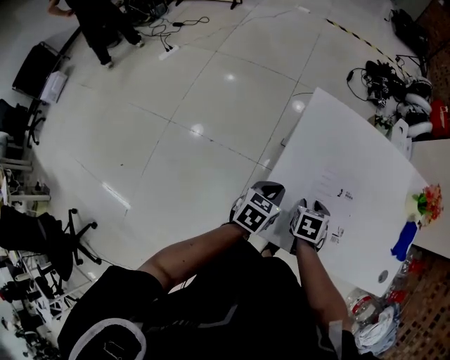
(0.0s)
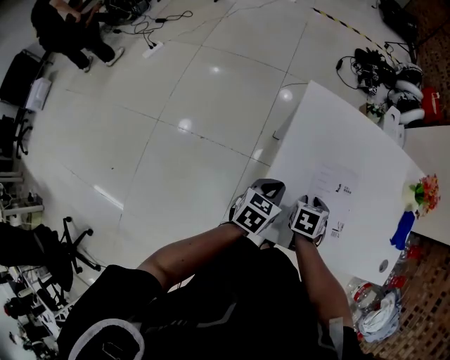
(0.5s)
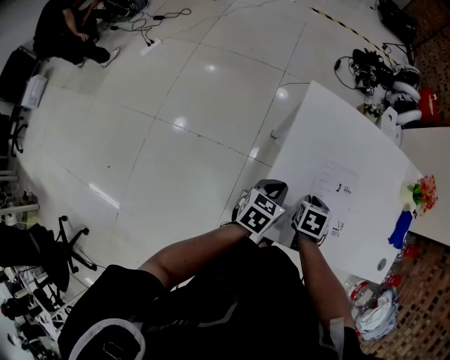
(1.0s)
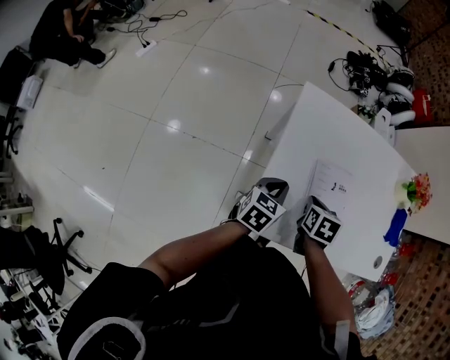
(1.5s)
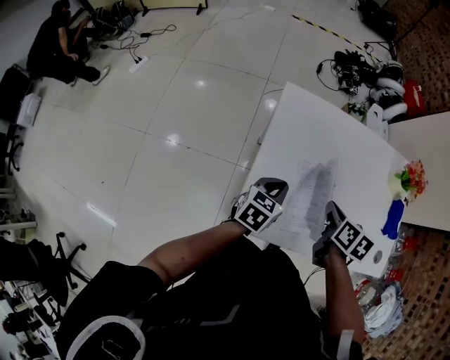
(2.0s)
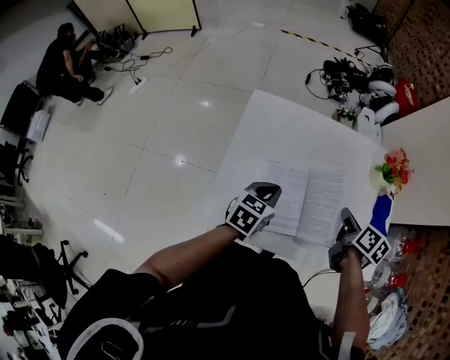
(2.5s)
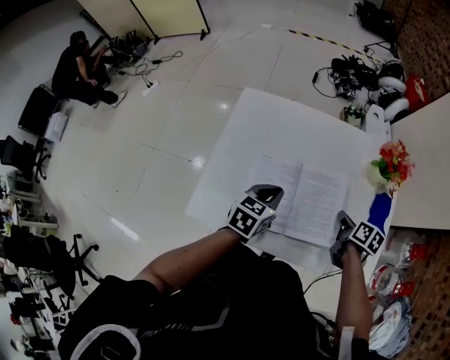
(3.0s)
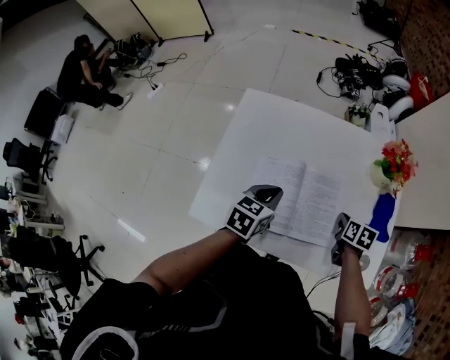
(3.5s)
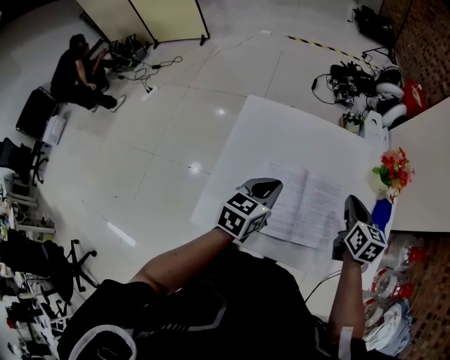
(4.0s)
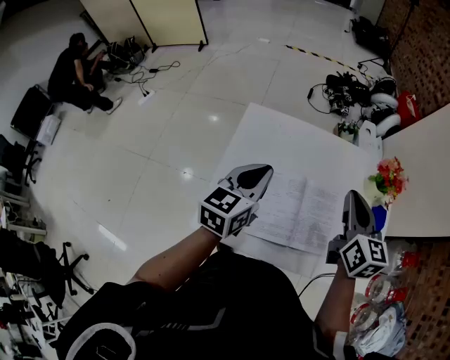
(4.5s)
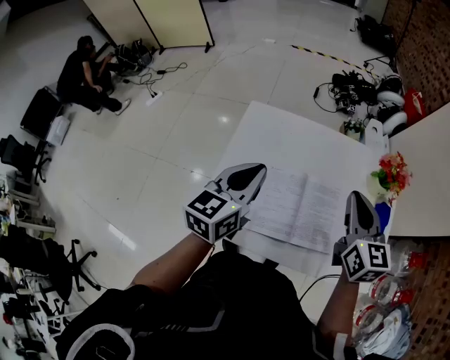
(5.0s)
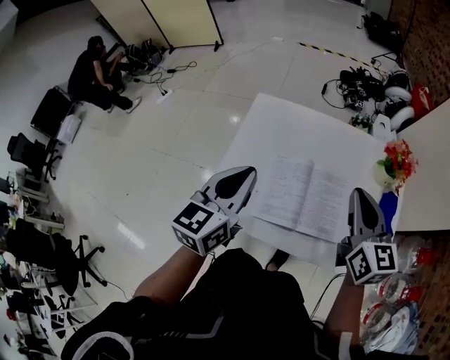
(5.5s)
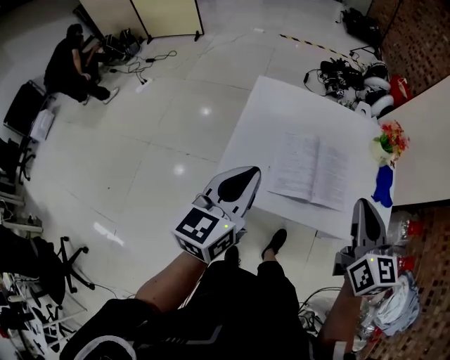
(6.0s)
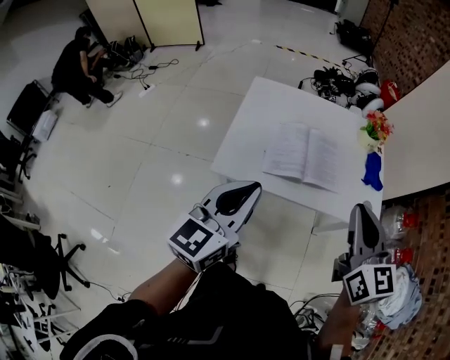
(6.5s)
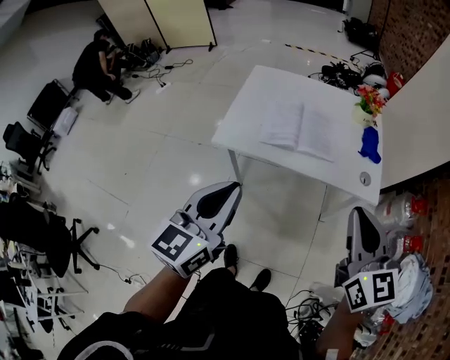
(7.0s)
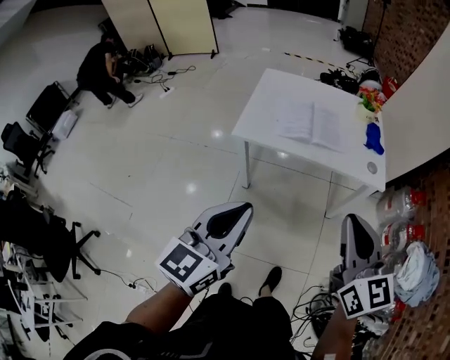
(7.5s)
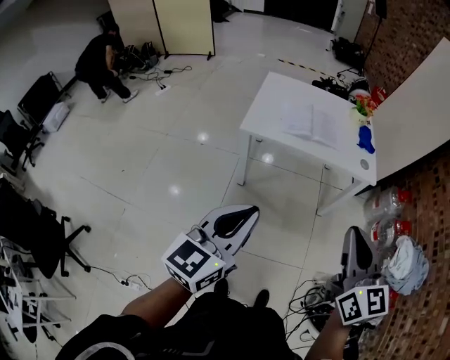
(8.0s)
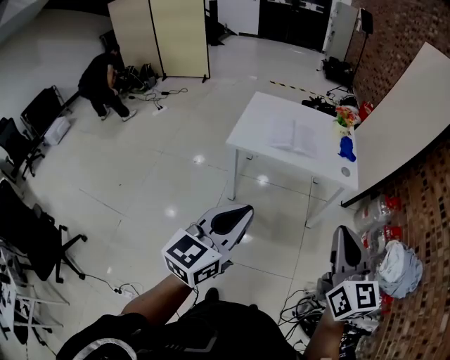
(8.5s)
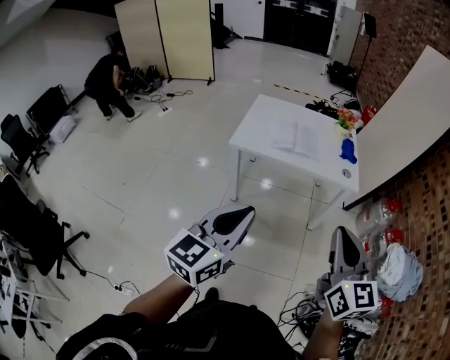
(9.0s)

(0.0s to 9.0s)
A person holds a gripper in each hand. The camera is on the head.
0.0s - 2.0s: The left gripper heads to the right, covering approximately 5 cm, while the right gripper is displaced upward and to the right by some 15 cm, swivels roughly 30 degrees, and closes.
2.0s - 4.5s: Both grippers travel together upward and to the right, approximately 20 cm. The right gripper points its fingers some 30 degrees further upward. Meanwhile the left gripper changes its angle by about 20 degrees.
4.5s - 7.0s: The pair of grippers is taken backward, roughly 50 cm.
7.0s - 9.0s: Both grippers travel together backward, about 30 cm.

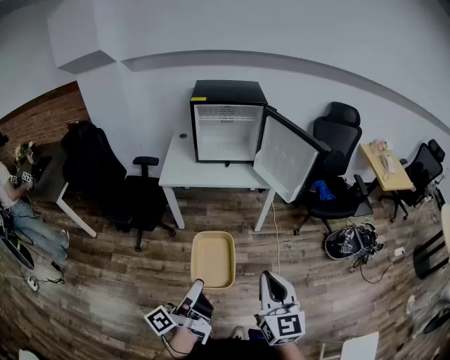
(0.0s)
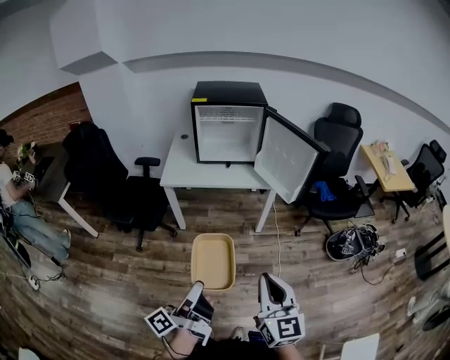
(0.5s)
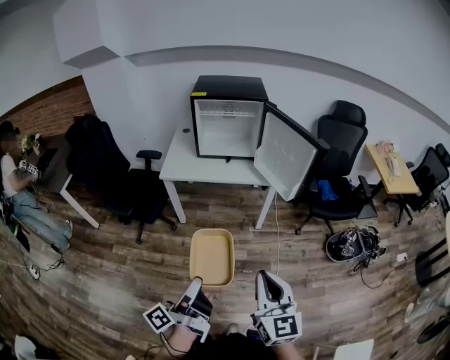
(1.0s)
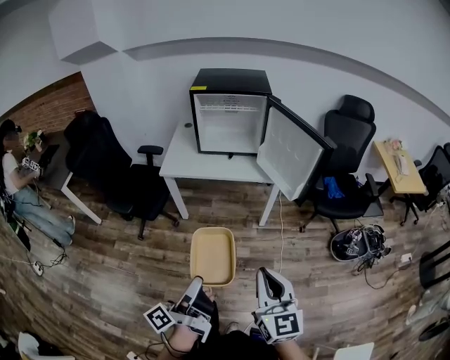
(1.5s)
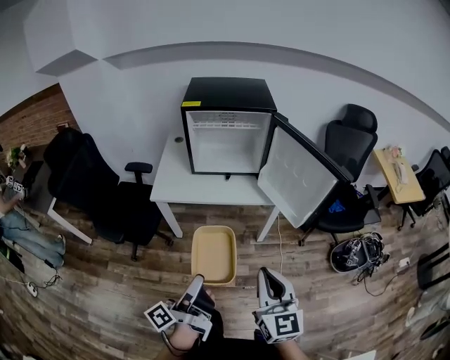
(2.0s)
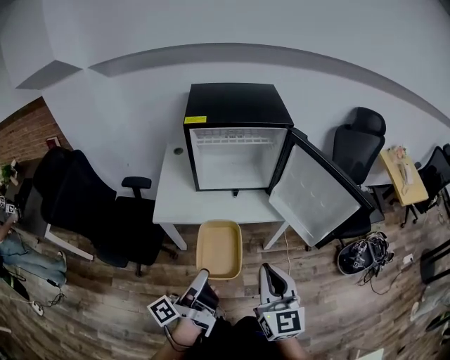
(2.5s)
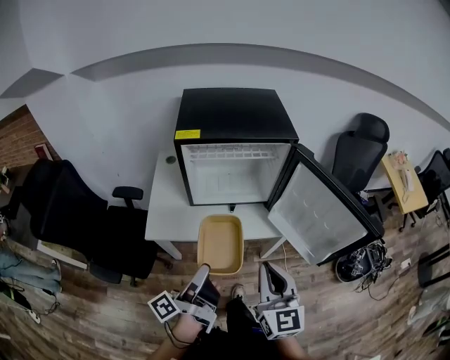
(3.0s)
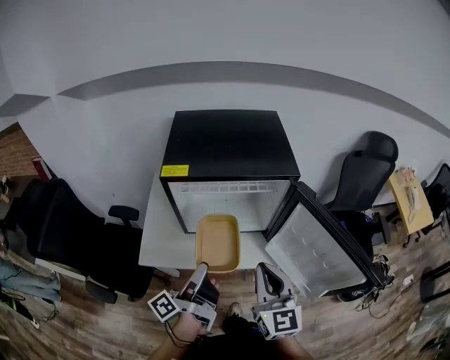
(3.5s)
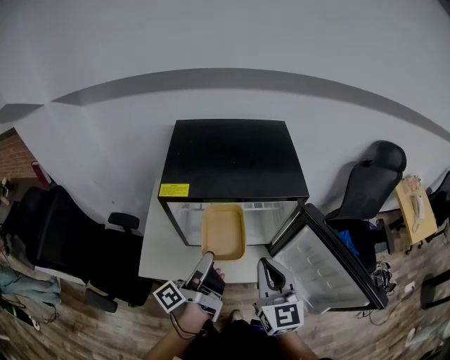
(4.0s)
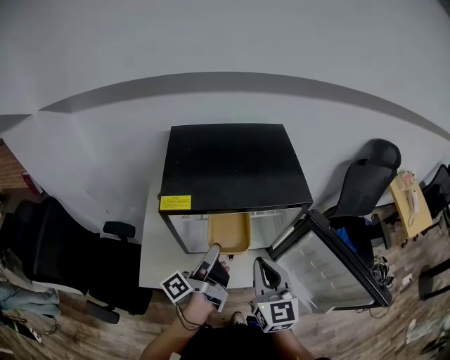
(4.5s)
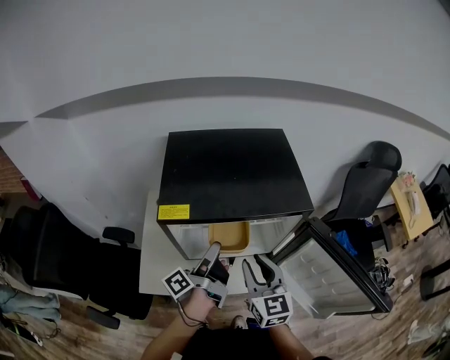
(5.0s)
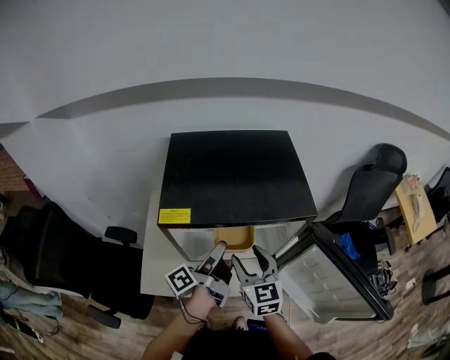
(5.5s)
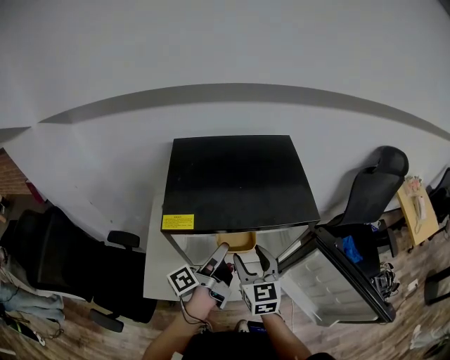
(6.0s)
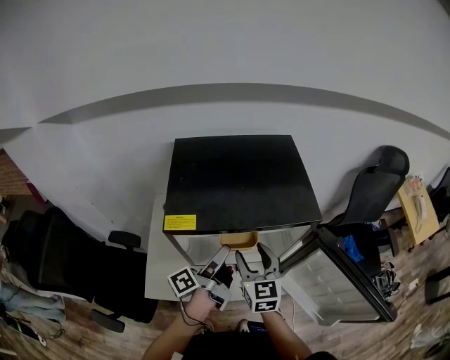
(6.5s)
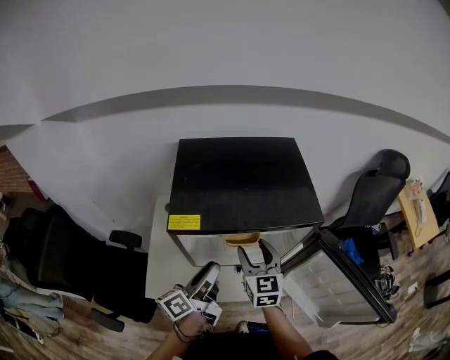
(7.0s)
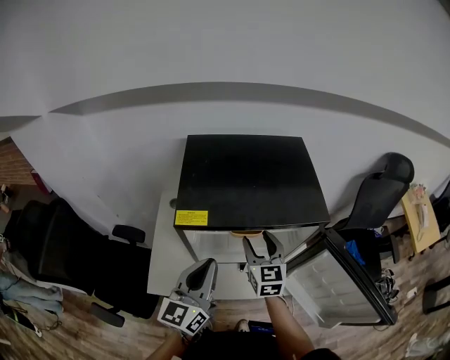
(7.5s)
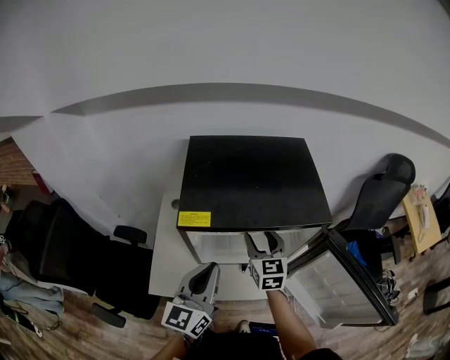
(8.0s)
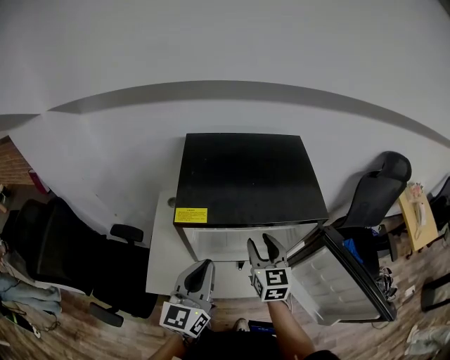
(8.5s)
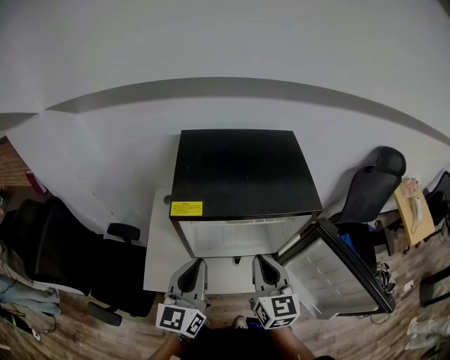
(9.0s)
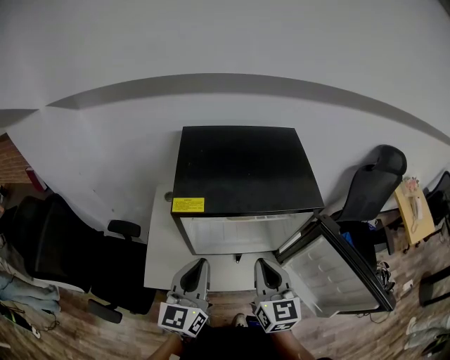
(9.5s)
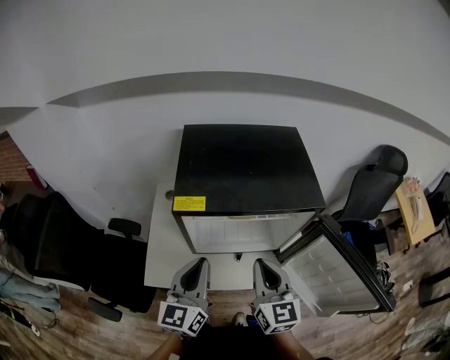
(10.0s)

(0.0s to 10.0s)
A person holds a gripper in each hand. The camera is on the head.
0.0s - 2.0s: Both grippers move forward, approximately 20 cm.
2.0s - 4.0s: The two grippers travel together, forward, some 50 cm.
4.0s - 6.0s: The right gripper goes roughly 15 cm forward, downward and to the left, and opens. The left gripper travels forward by some 10 cm.
6.0s - 8.0s: The left gripper is displaced backward and upward by some 10 cm, twists roughly 70 degrees clockwise, seen from behind, and closes, while the right gripper travels forward by approximately 5 cm.
8.0s - 10.0s: The right gripper heads backward, covering about 15 cm, and closes.

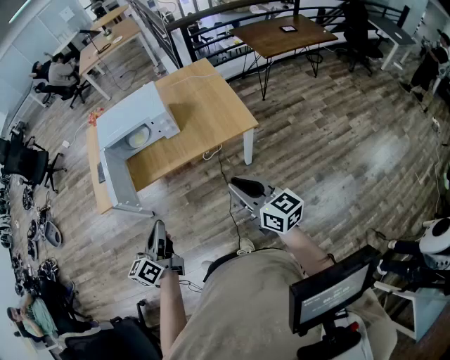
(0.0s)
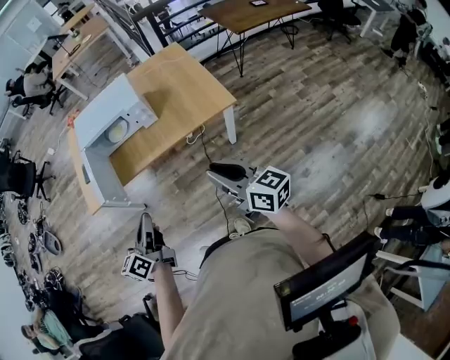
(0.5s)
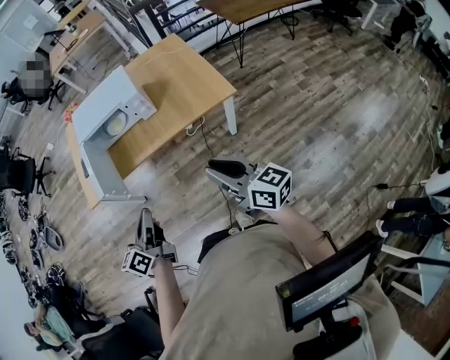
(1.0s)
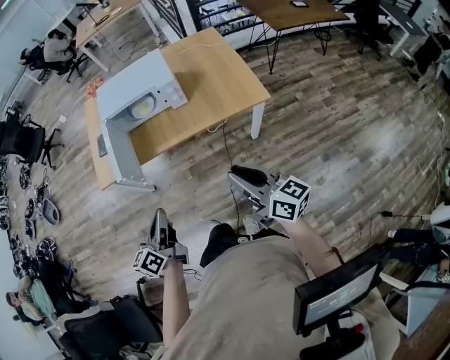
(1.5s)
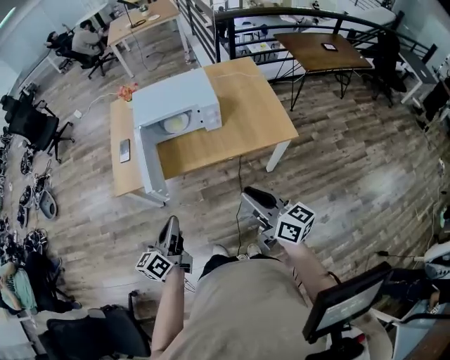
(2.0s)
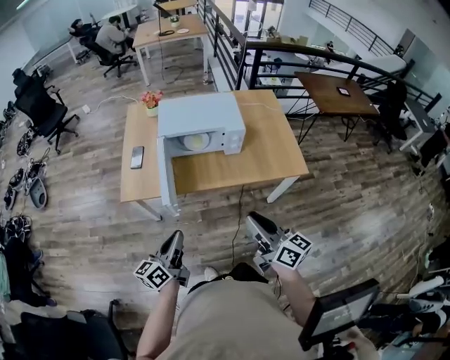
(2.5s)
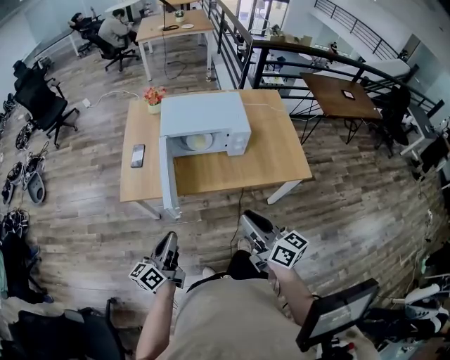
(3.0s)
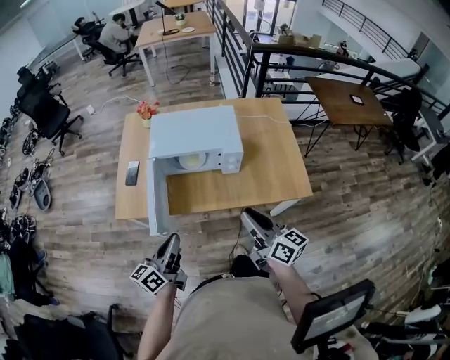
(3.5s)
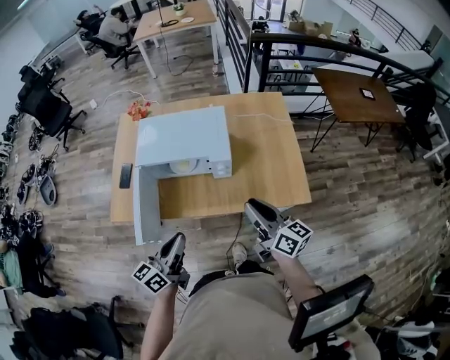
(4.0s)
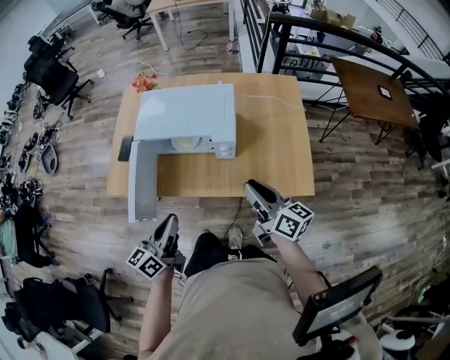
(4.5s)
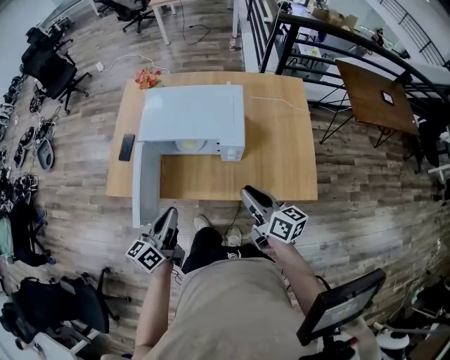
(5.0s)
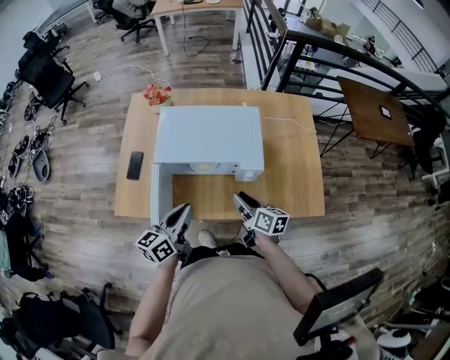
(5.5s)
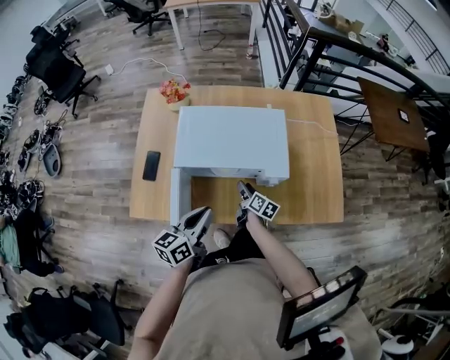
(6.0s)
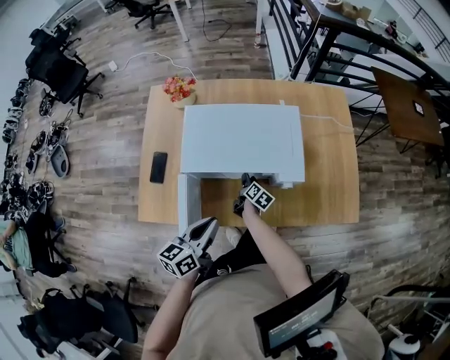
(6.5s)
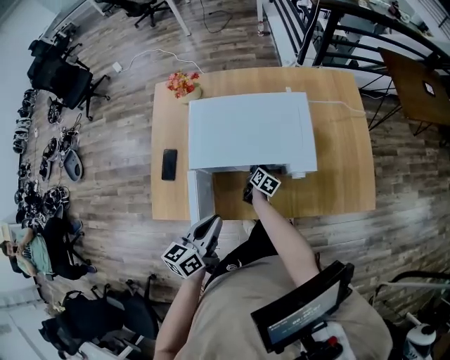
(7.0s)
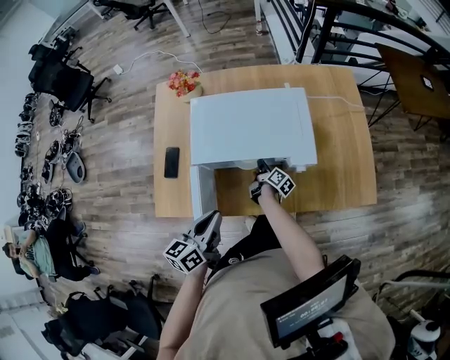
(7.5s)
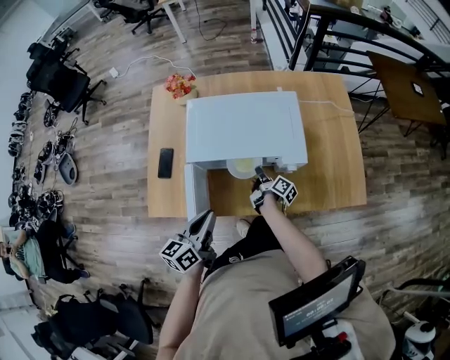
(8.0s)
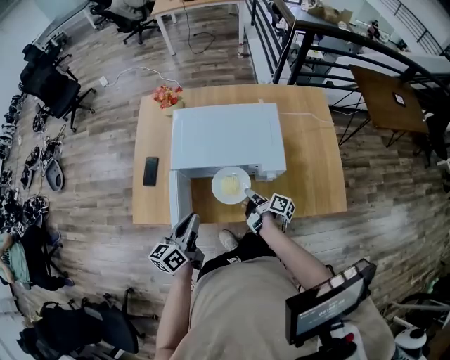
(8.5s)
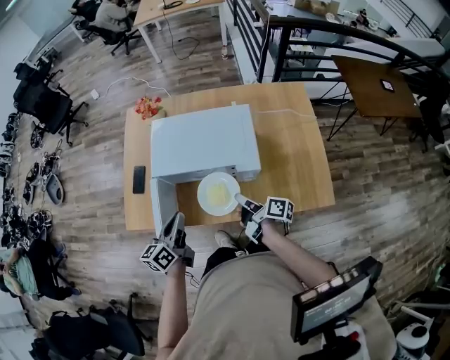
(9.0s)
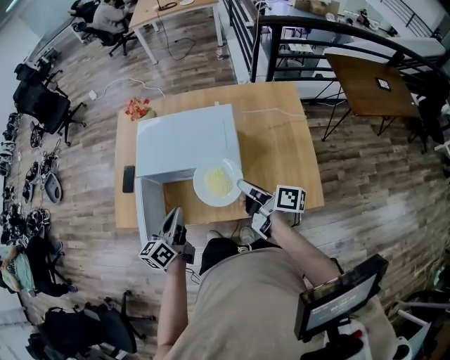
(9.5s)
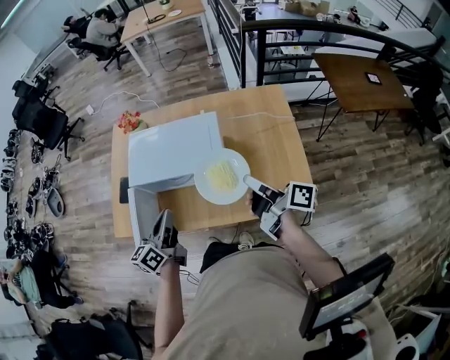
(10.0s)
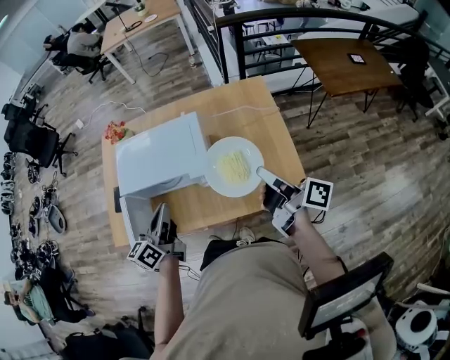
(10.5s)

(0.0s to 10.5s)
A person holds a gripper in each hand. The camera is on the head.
0.0s - 2.0s: Both grippers travel together to the left and forward, approximately 15 cm.
2.0s - 4.0s: The left gripper heads forward and to the right, covering approximately 20 cm, while the right gripper heads forward, covering some 25 cm.
4.0s - 6.5s: The left gripper is displaced forward, to the left and downward by roughly 25 cm. The right gripper travels downward, forward and to the left by approximately 50 cm, and angles its fingers downward, by roughly 40 degrees.
6.5s - 8.5s: The right gripper is displaced upward and backward by roughly 15 cm, rotates approximately 30 degrees, and closes.
8.5s - 10.5s: The left gripper goes about 20 cm to the right and upward, while the right gripper goes about 40 cm upward and to the right, and rotates about 30 degrees.
